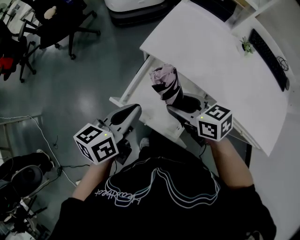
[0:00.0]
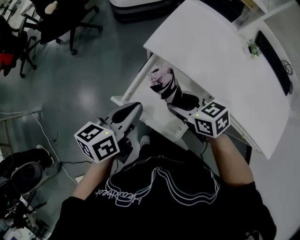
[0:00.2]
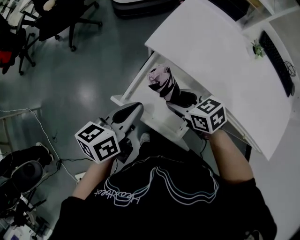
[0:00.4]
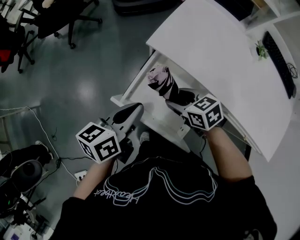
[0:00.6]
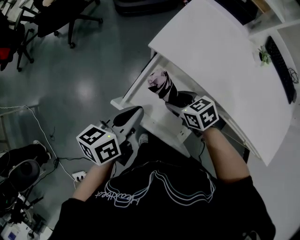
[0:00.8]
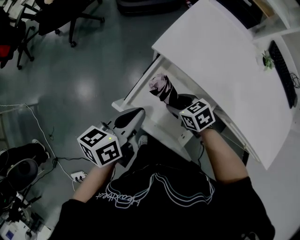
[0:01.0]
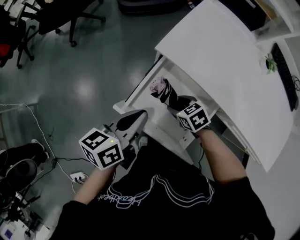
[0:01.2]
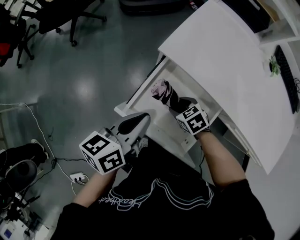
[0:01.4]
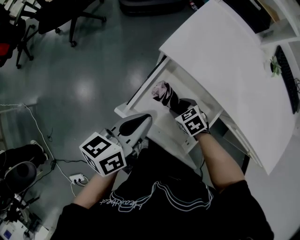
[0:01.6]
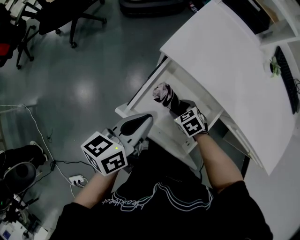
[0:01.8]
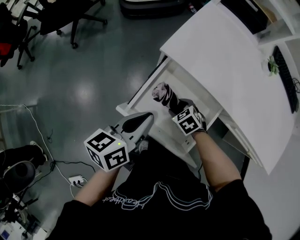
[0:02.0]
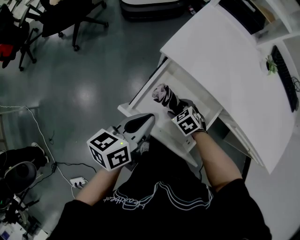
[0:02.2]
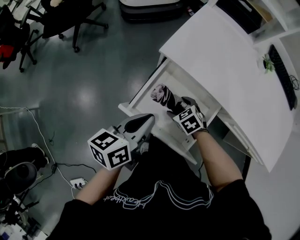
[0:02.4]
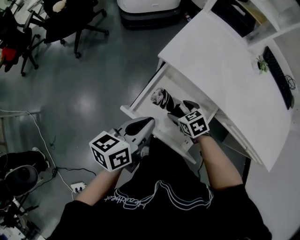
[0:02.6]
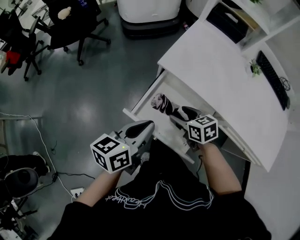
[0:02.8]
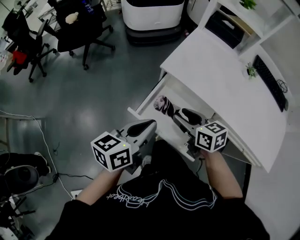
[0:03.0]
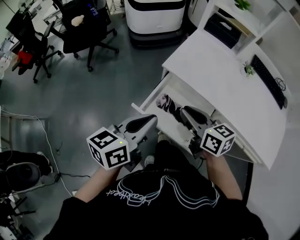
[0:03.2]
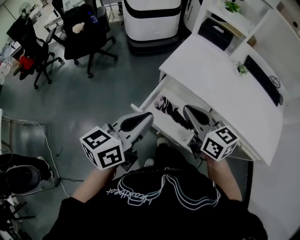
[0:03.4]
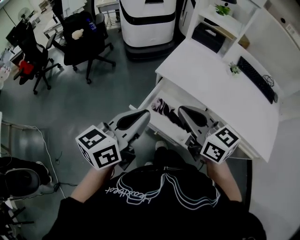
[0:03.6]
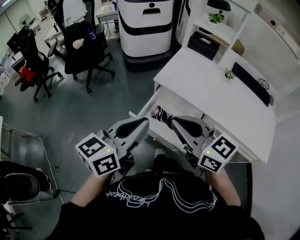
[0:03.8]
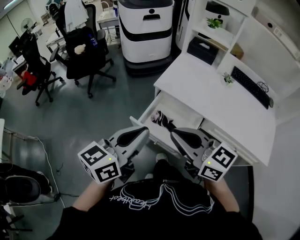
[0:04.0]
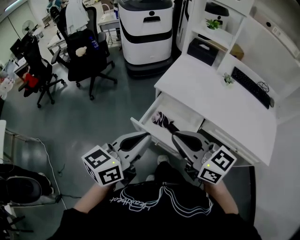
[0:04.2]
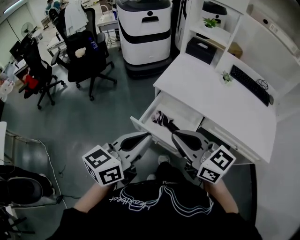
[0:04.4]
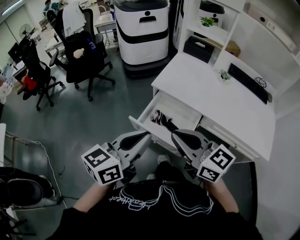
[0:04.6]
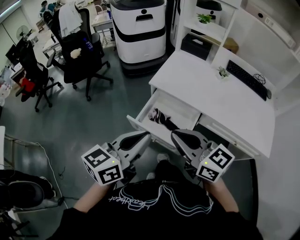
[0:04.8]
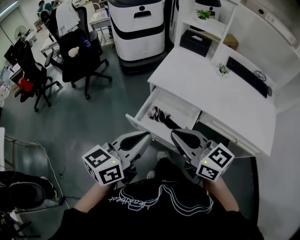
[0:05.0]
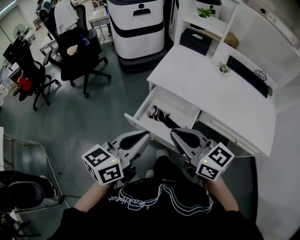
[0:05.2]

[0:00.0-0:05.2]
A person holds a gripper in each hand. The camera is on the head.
0.0 to 1.8 s: The left gripper is displaced downward by roughly 10 cm. The right gripper goes roughly 25 cm downward, and points its fingers approximately 30 degrees further downward.
1.8 to 3.4 s: The left gripper is displaced upward and backward by some 20 cm, while the right gripper travels upward by roughly 35 cm, tips its fingers upward by approximately 50 degrees, and closes.
3.4 to 5.2 s: The right gripper travels backward and upward by roughly 10 cm, while the left gripper heads backward, covering about 5 cm.

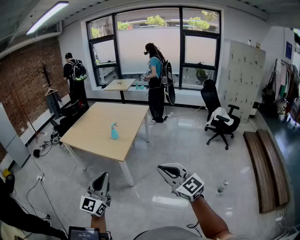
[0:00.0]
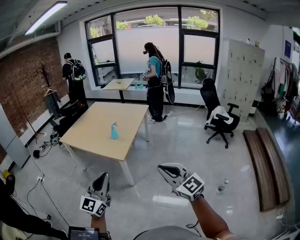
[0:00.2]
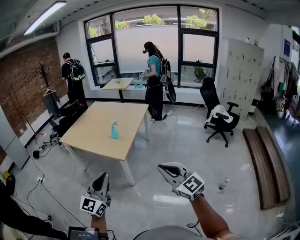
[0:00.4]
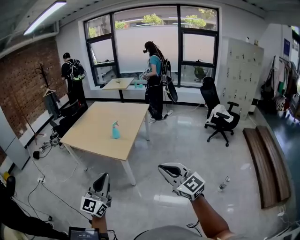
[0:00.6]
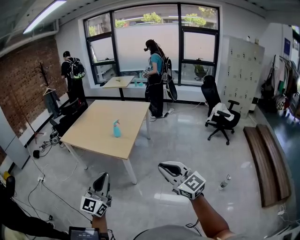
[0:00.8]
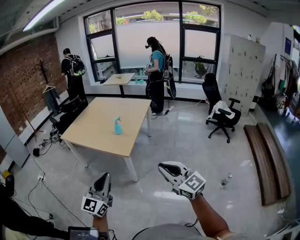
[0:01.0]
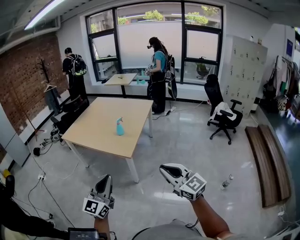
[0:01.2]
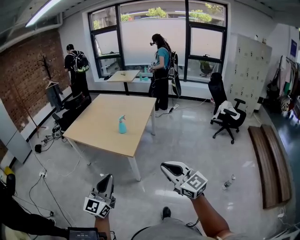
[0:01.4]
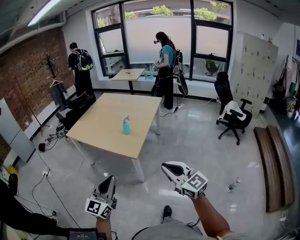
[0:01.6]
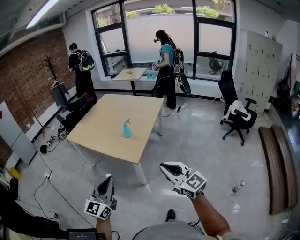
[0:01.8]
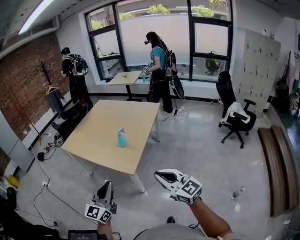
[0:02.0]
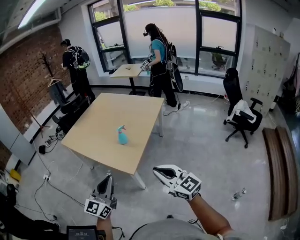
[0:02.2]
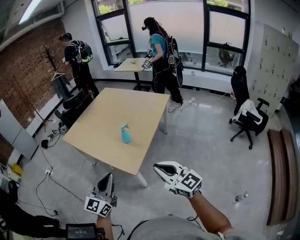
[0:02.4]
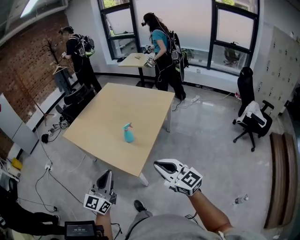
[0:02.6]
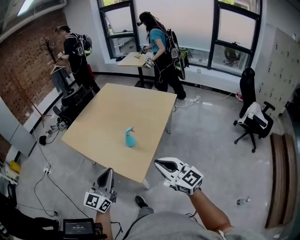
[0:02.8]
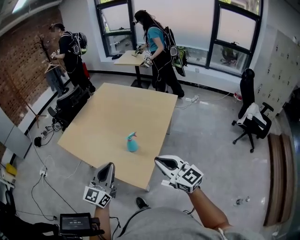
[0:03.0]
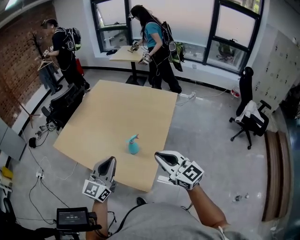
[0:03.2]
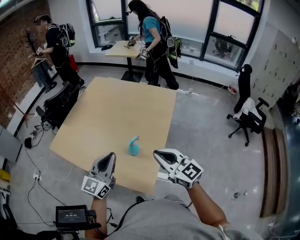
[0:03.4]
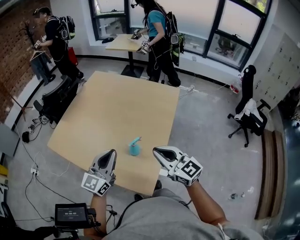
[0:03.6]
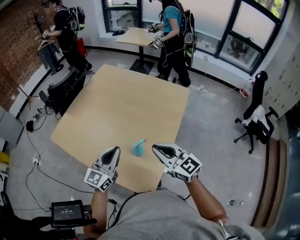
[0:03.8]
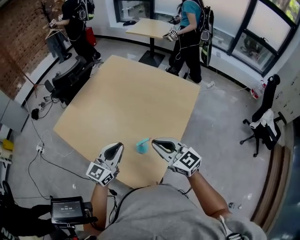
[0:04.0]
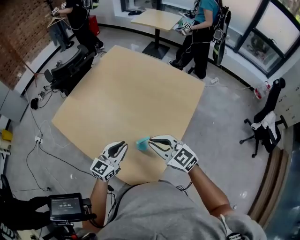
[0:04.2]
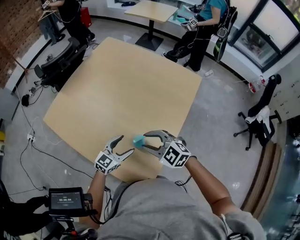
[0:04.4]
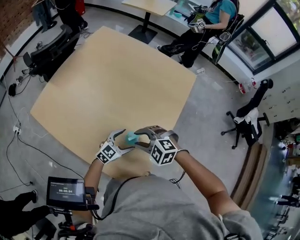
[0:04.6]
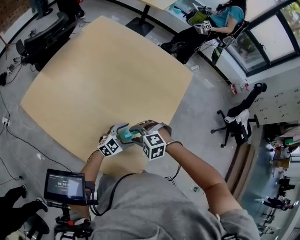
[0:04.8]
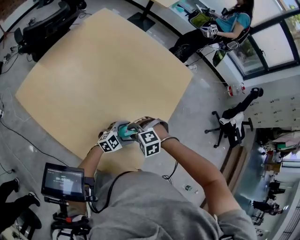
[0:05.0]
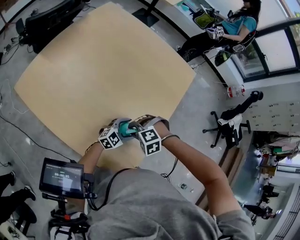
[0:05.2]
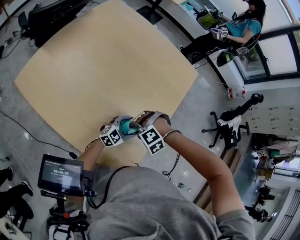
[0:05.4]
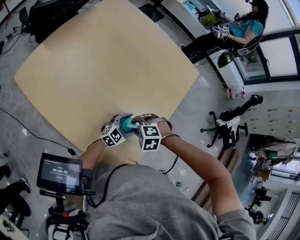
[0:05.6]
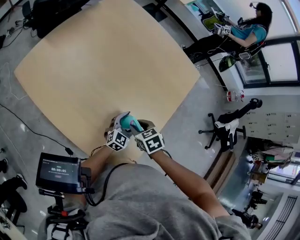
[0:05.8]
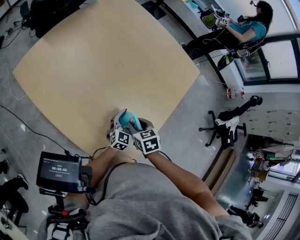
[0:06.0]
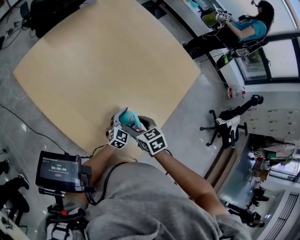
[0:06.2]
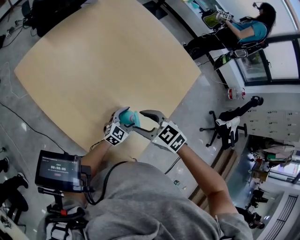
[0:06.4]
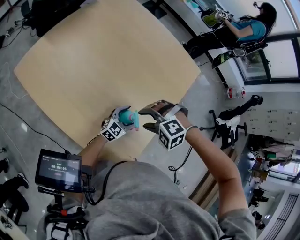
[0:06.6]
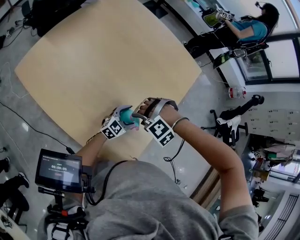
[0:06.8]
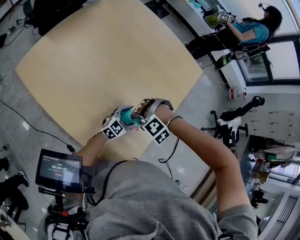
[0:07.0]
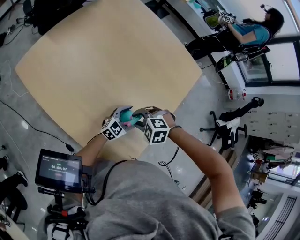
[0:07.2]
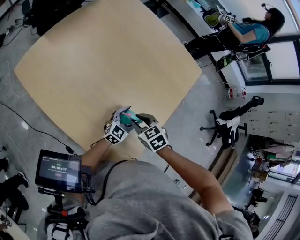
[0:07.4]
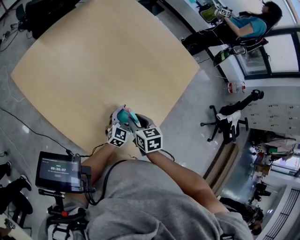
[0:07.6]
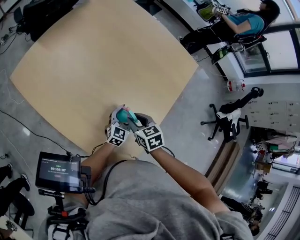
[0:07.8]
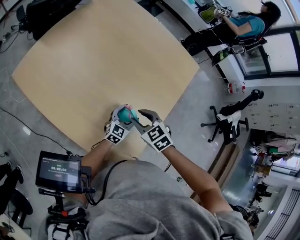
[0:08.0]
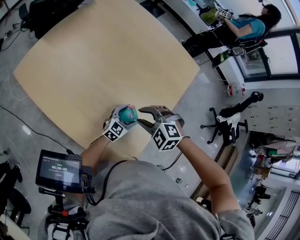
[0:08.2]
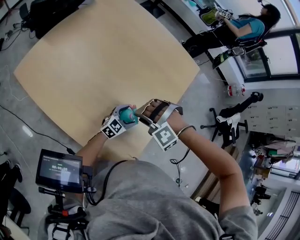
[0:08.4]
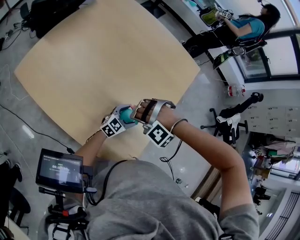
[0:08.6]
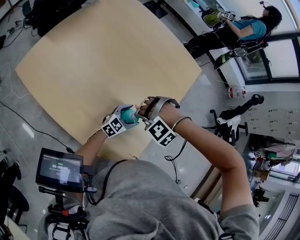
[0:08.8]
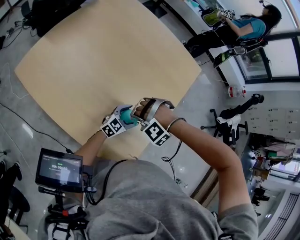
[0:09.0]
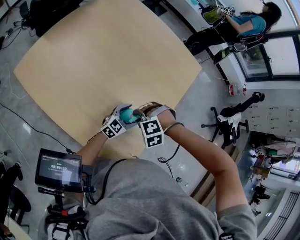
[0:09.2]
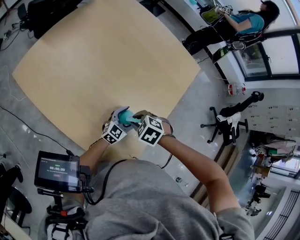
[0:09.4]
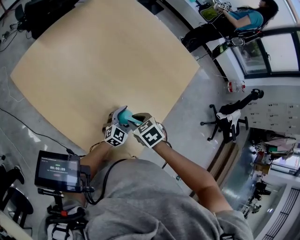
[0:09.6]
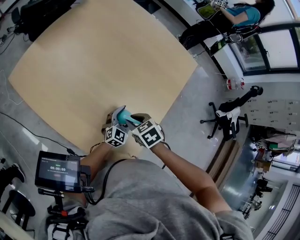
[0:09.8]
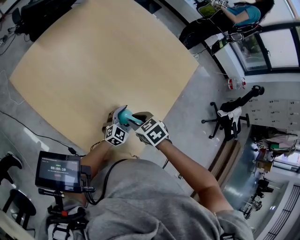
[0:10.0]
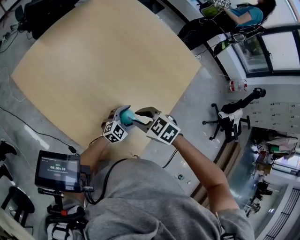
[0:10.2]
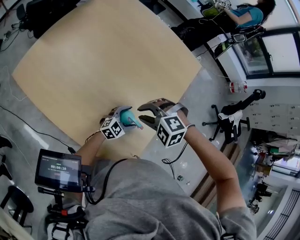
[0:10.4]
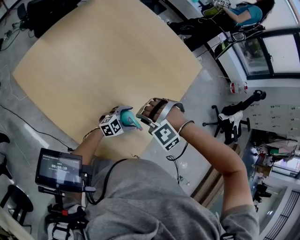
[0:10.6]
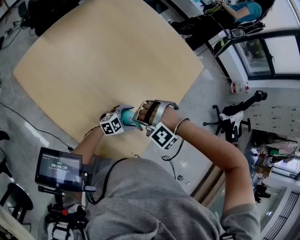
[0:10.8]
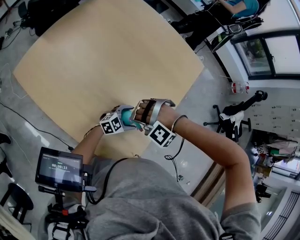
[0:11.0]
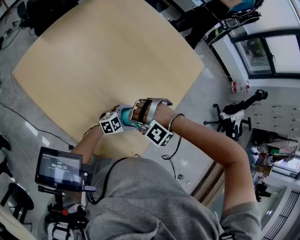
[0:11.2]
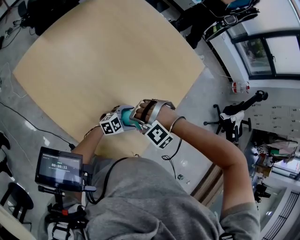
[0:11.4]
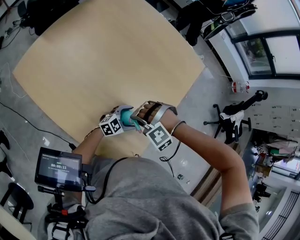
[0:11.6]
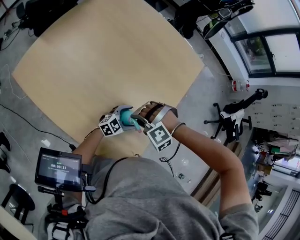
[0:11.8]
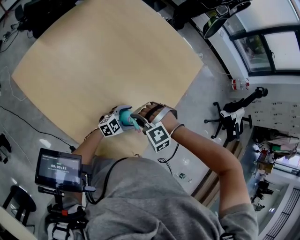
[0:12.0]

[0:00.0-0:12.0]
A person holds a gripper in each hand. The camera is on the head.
0.0 to 1.6 s: The right gripper moves forward and to the left, some 15 cm, while the left gripper travels to the left, forward and downward by approximately 10 cm.
1.6 to 3.0 s: The two grippers travel together, forward, roughly 40 cm.
3.0 to 4.4 s: Both grippers move forward and downward, roughly 35 cm. The left gripper swivels approximately 30 degrees, and opens; the right gripper points its fingers about 30 degrees further downward, and opens up.
4.4 to 6.0 s: Both grippers move downward, about 15 cm. The right gripper twists some 40 degrees clockwise, seen from behind. Meanwhile the left gripper changes its angle by approximately 20 degrees.
6.0 to 7.6 s: The right gripper reaches roughly 10 cm upward, then returns, and opens and closes again.
7.6 to 9.0 s: The left gripper swivels some 30 degrees. Meanwhile the right gripper rotates around the line of its fingers by roughly 120 degrees, counterclockwise from behind.
9.0 to 10.4 s: The right gripper shifts about 10 cm upward, and rotates around the line of its fingers by some 40 degrees, clockwise from behind.
10.4 to 12.0 s: The right gripper is displaced downward by roughly 5 cm, and turns by about 20 degrees.

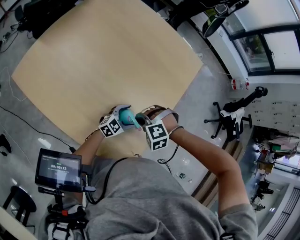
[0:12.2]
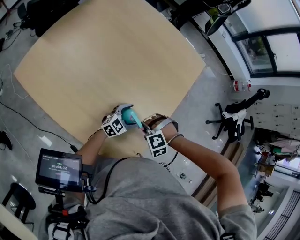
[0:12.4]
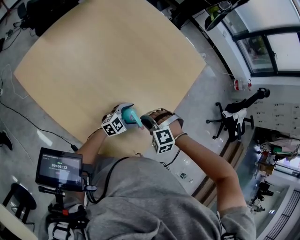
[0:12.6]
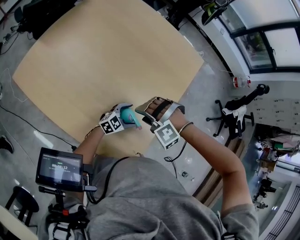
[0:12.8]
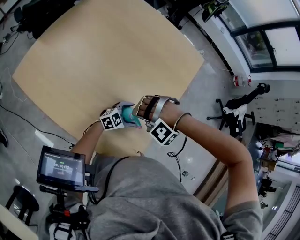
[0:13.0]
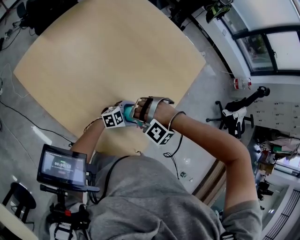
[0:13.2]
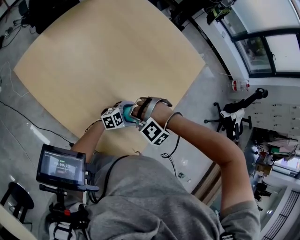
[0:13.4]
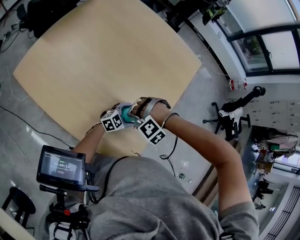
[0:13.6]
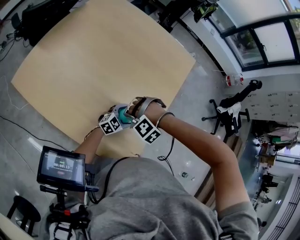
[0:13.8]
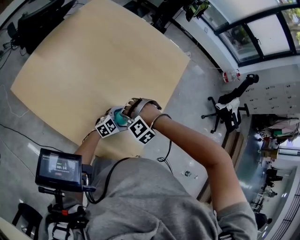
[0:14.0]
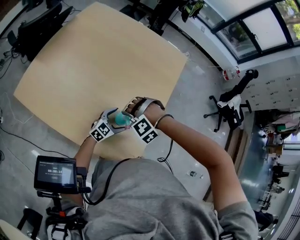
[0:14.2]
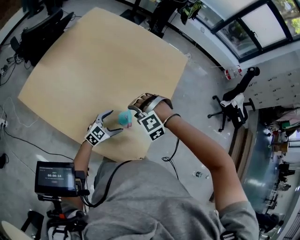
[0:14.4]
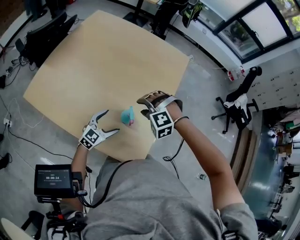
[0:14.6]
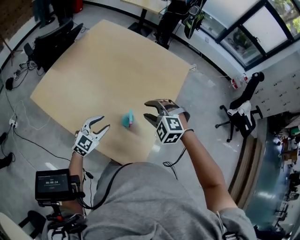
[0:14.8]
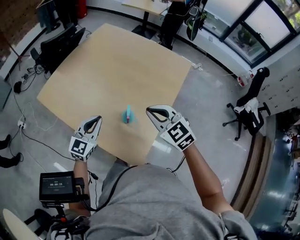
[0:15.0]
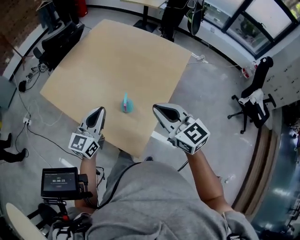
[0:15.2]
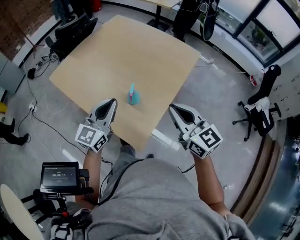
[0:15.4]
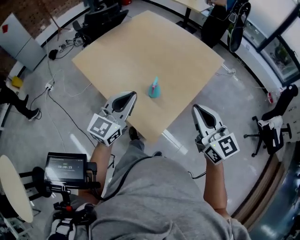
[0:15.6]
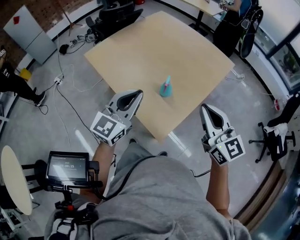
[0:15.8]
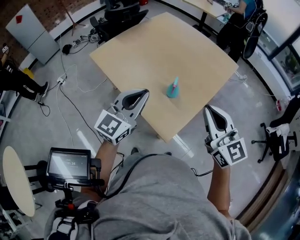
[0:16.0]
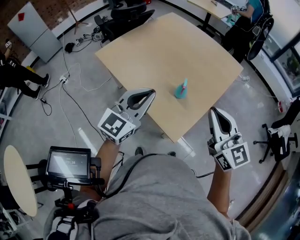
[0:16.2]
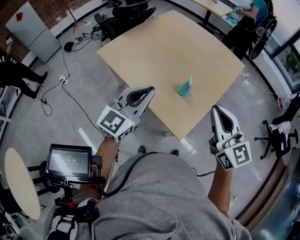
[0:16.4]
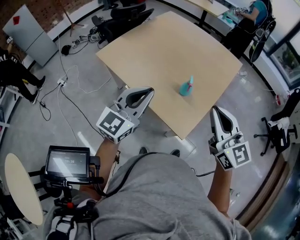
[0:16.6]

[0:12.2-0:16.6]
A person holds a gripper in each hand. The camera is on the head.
12.2 to 13.6 s: The right gripper swivels roughly 30 degrees, and opens up.
13.6 to 15.2 s: Both grippers travel together upward, some 30 cm. The right gripper tilts its fingers roughly 70 degrees upward, and closes. Meanwhile the left gripper rotates approximately 50 degrees, and closes its fingers.
15.2 to 16.6 s: The two grippers go some 20 cm backward, to the left and upward.

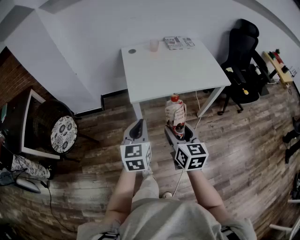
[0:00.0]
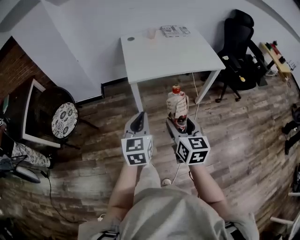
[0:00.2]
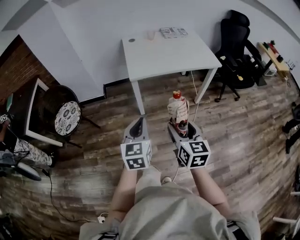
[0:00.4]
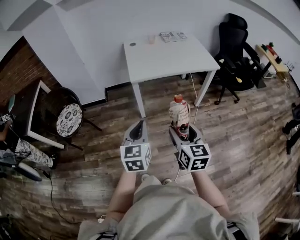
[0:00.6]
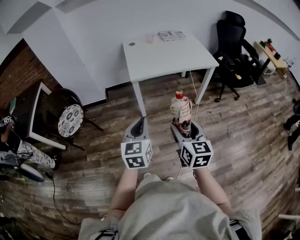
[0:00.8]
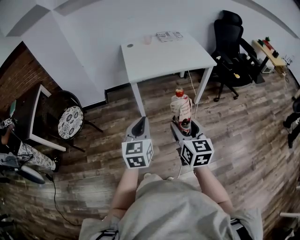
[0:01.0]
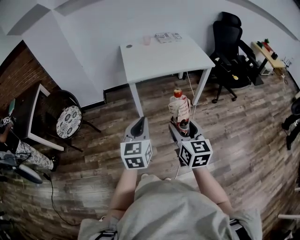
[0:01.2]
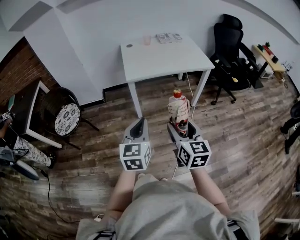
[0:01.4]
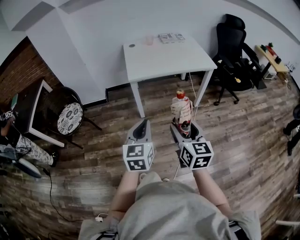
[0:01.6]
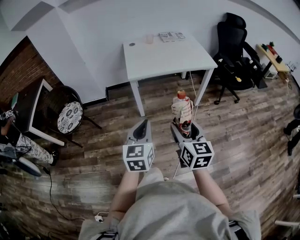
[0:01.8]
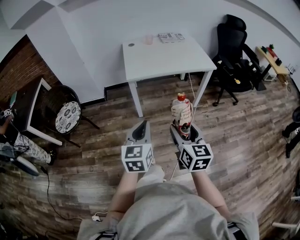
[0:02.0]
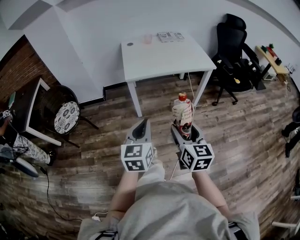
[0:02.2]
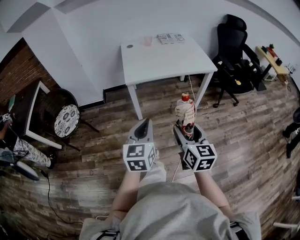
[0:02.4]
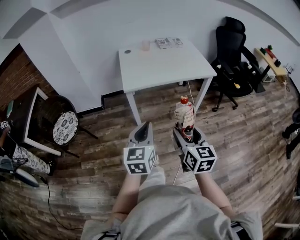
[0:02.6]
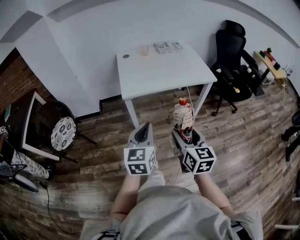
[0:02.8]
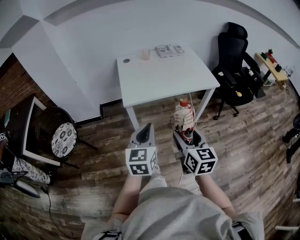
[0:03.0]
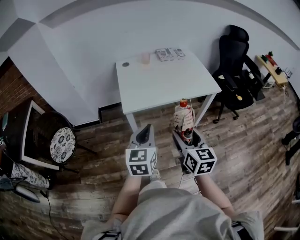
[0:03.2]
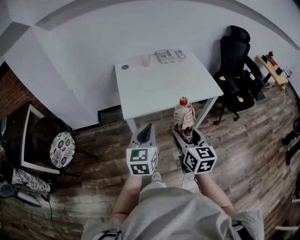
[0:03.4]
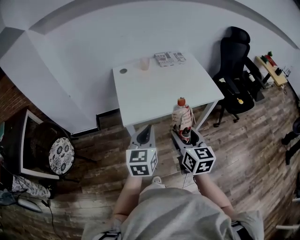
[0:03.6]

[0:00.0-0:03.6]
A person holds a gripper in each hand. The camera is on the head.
0.0 to 1.8 s: Both grippers travel together backward, roughly 25 cm.
1.8 to 3.6 s: The grippers both shift forward by some 35 cm.
